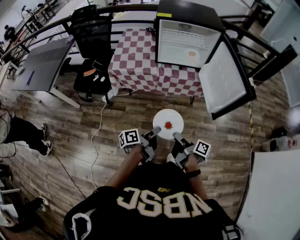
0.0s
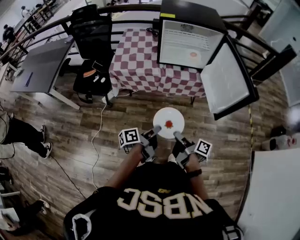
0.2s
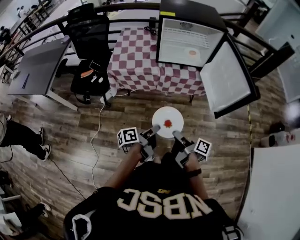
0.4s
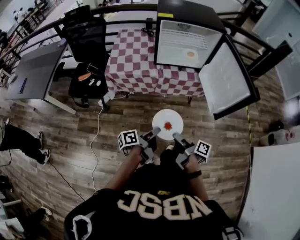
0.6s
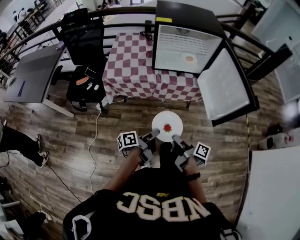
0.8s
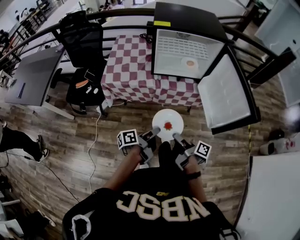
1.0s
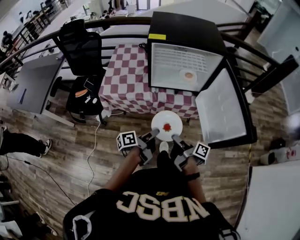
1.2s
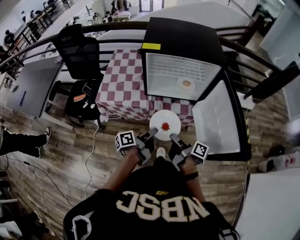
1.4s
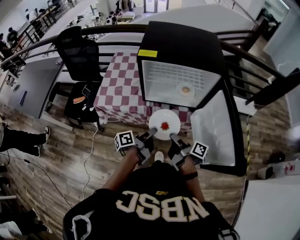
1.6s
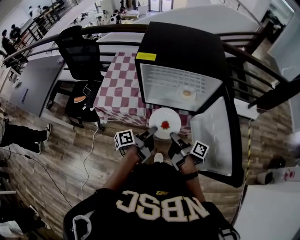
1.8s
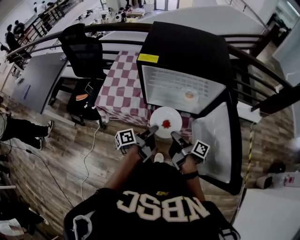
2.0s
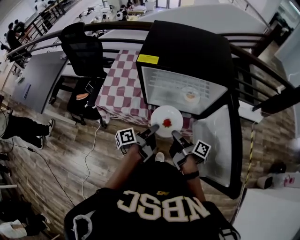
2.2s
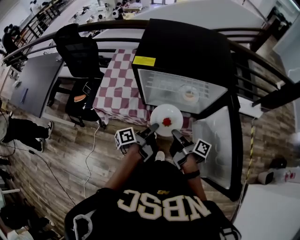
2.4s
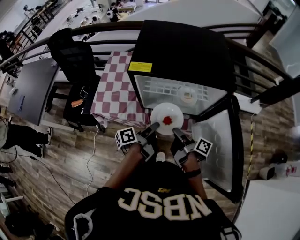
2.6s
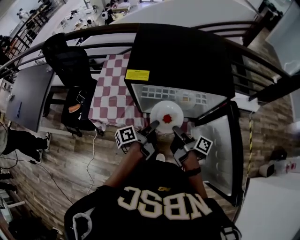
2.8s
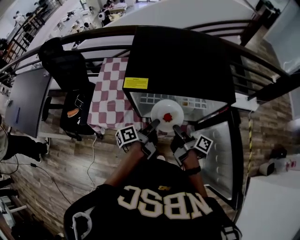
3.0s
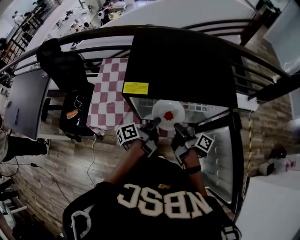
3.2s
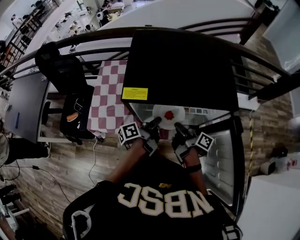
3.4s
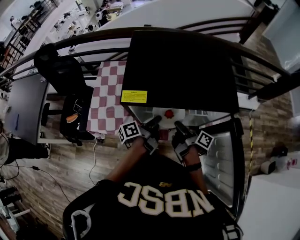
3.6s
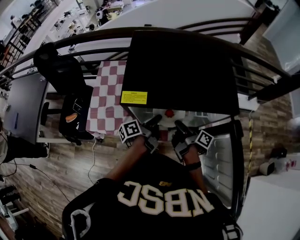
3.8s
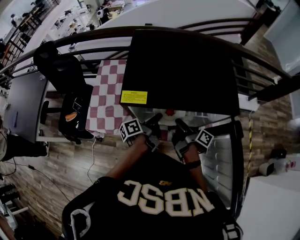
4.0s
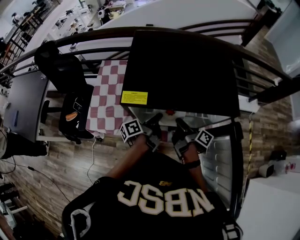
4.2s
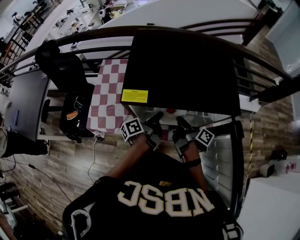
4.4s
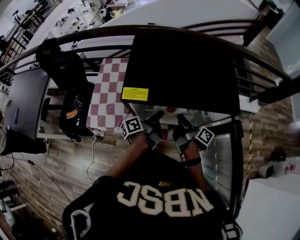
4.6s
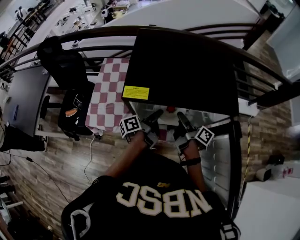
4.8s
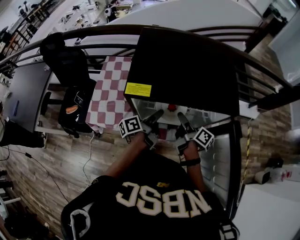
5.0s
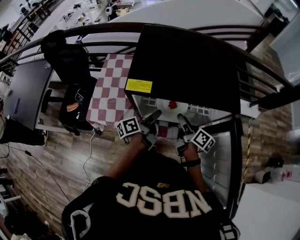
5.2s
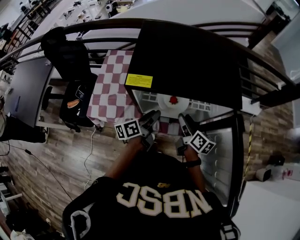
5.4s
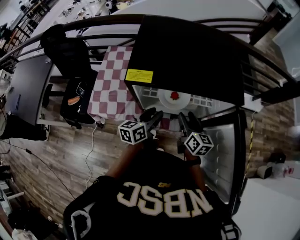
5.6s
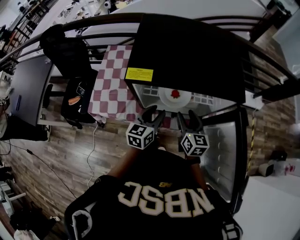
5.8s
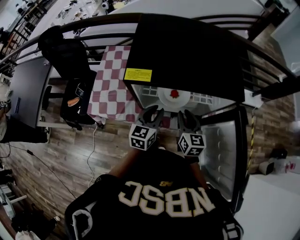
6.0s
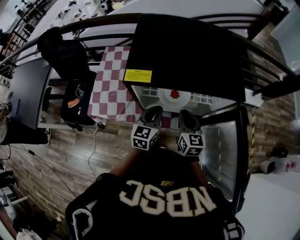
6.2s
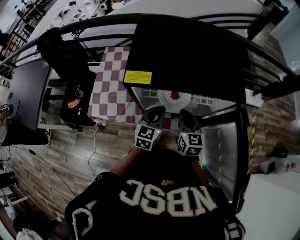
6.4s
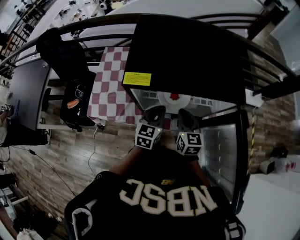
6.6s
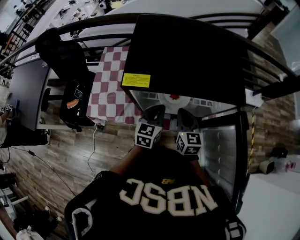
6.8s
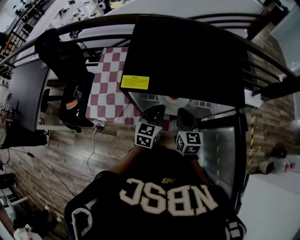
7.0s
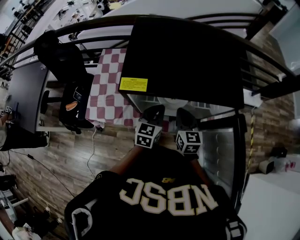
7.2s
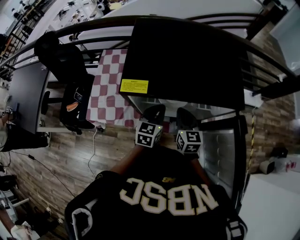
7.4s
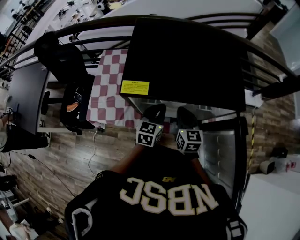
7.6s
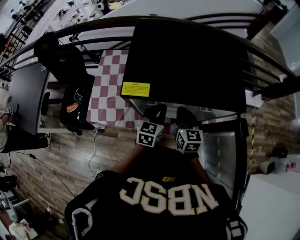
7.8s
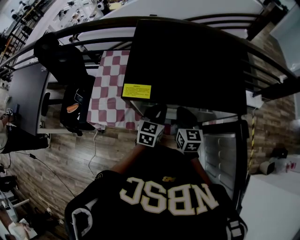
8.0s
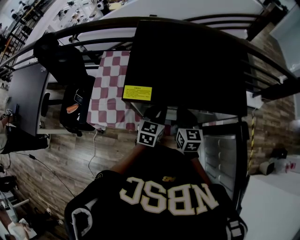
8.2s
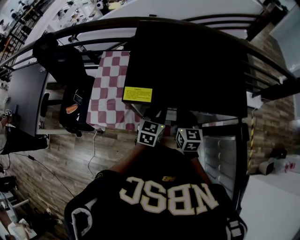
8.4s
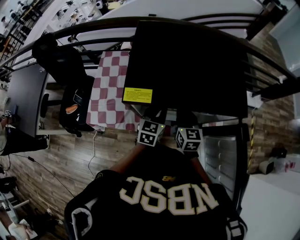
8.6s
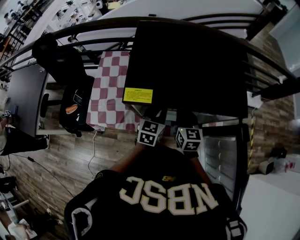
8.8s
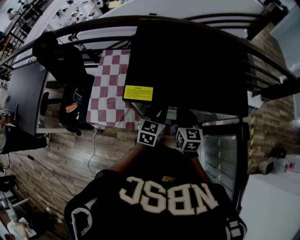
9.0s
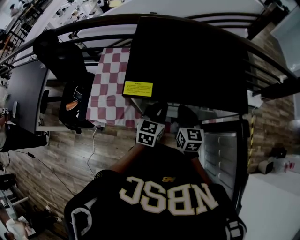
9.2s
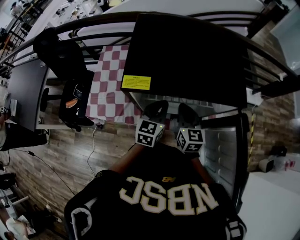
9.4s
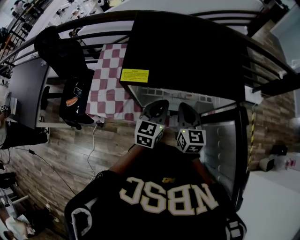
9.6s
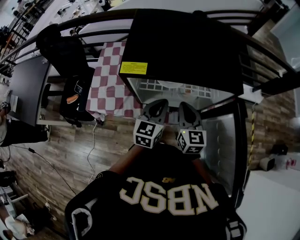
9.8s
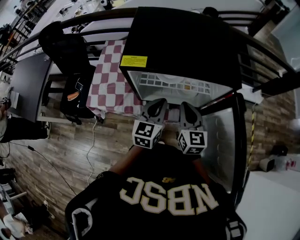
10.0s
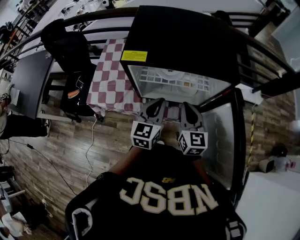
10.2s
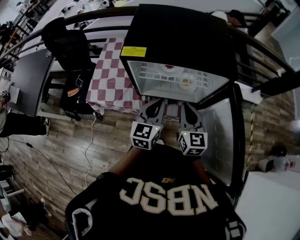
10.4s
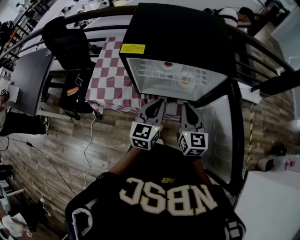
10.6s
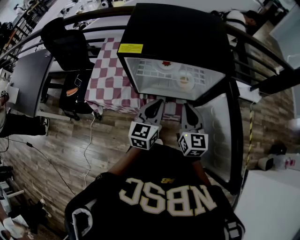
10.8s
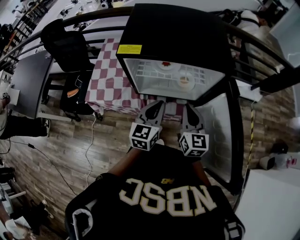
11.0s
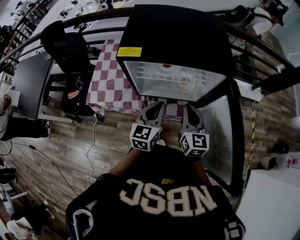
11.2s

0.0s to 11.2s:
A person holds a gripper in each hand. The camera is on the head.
0.0s to 1.6s: The grippers both shift forward by some 30 cm.
1.6s to 3.2s: The two grippers go about 20 cm forward.
3.2s to 4.8s: Both grippers move forward, roughly 5 cm. The right gripper opens up; the left gripper opens.
4.8s to 6.4s: The left gripper rotates around the line of its fingers by some 80 degrees, clockwise from behind, and closes up; the right gripper rotates around the line of its fingers by approximately 70 degrees, counterclockwise from behind, and closes its fingers.
6.4s to 8.0s: The two grippers go roughly 5 cm forward.
8.0s to 9.6s: The right gripper ends up some 5 cm from where it was, while the left gripper changes place by approximately 5 cm.
9.6s to 11.2s: The right gripper goes some 10 cm backward and to the right. Meanwhile the left gripper goes about 10 cm backward.

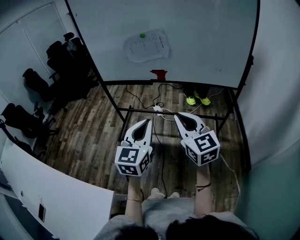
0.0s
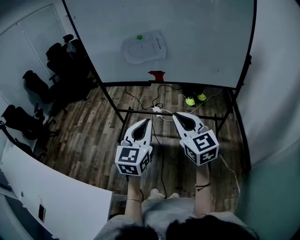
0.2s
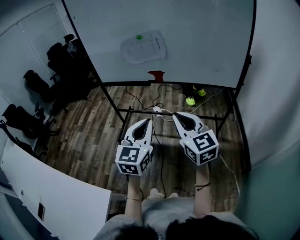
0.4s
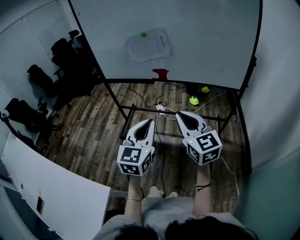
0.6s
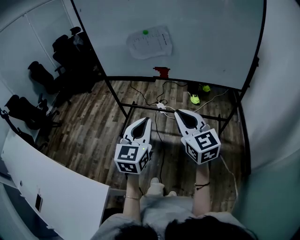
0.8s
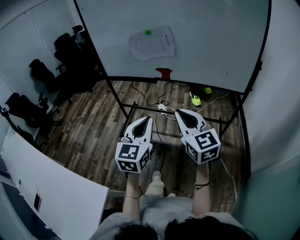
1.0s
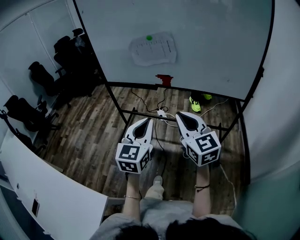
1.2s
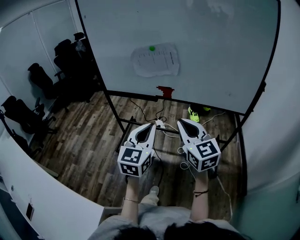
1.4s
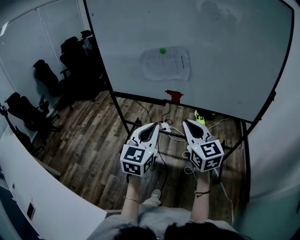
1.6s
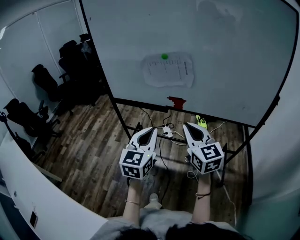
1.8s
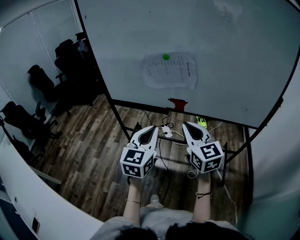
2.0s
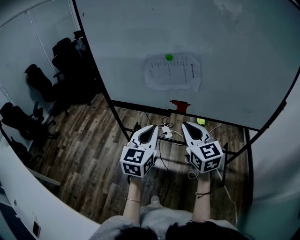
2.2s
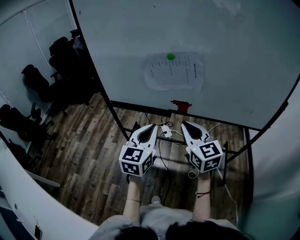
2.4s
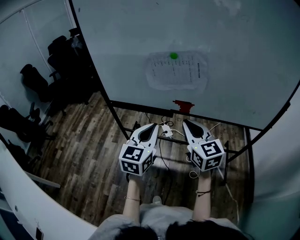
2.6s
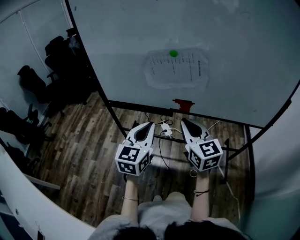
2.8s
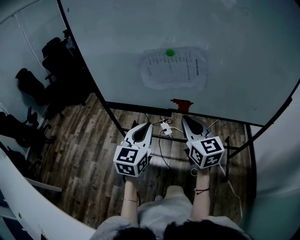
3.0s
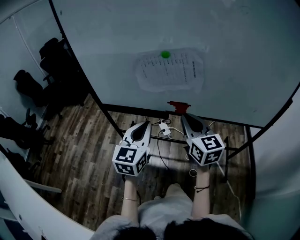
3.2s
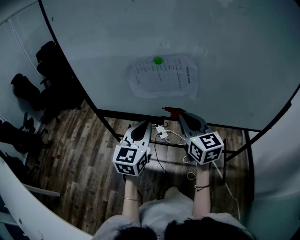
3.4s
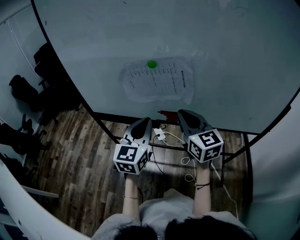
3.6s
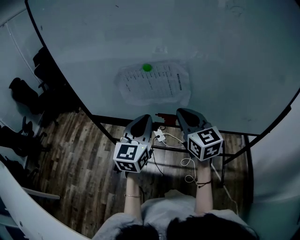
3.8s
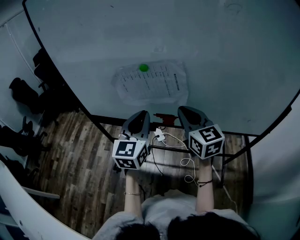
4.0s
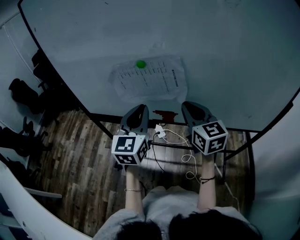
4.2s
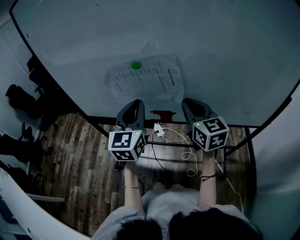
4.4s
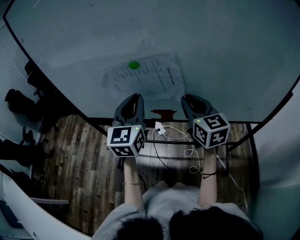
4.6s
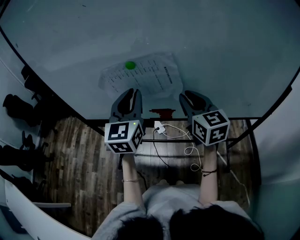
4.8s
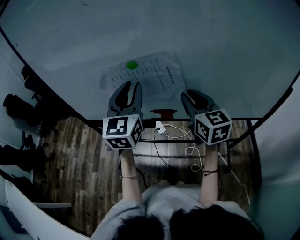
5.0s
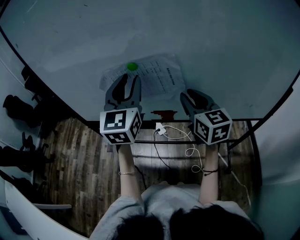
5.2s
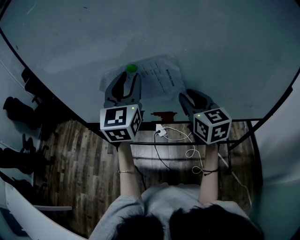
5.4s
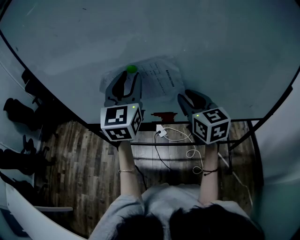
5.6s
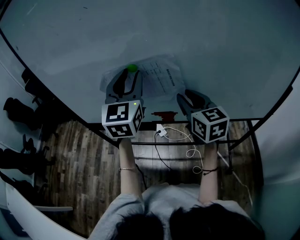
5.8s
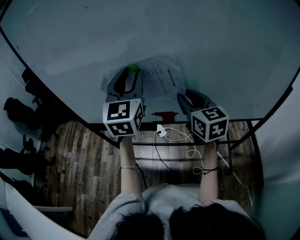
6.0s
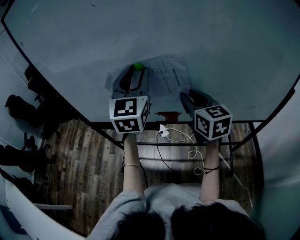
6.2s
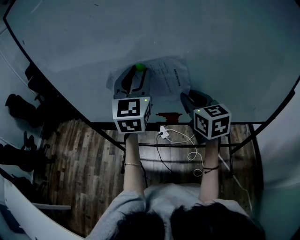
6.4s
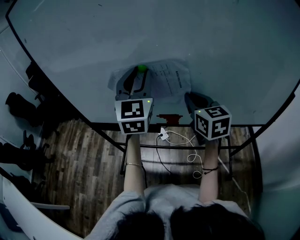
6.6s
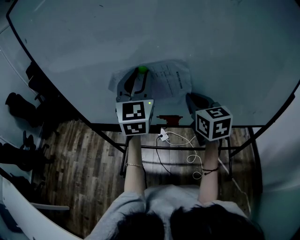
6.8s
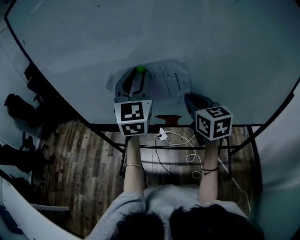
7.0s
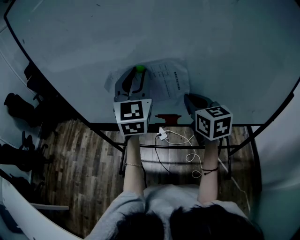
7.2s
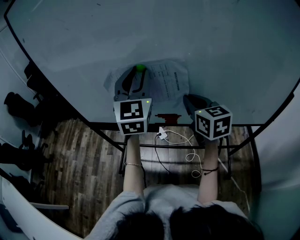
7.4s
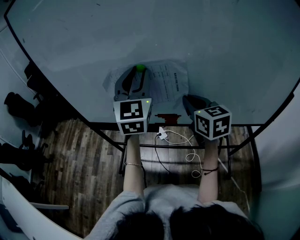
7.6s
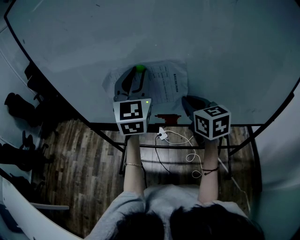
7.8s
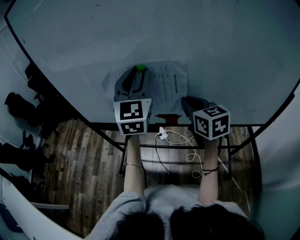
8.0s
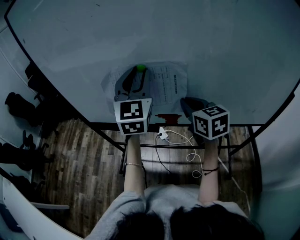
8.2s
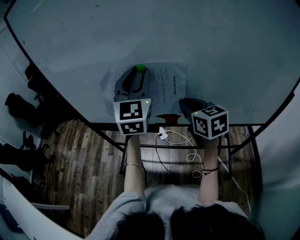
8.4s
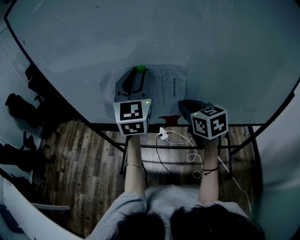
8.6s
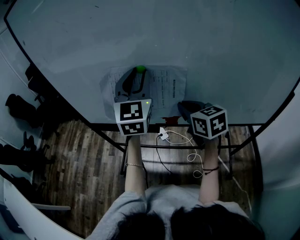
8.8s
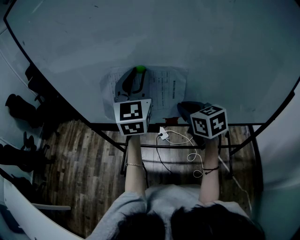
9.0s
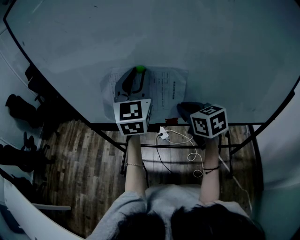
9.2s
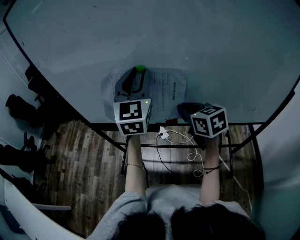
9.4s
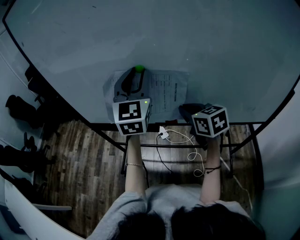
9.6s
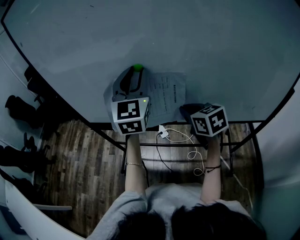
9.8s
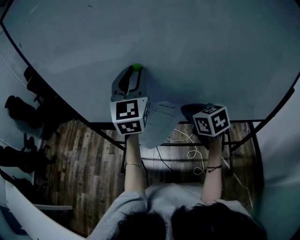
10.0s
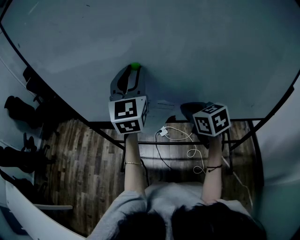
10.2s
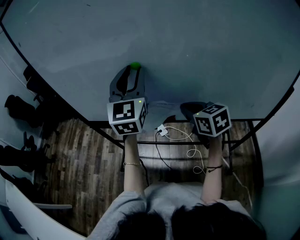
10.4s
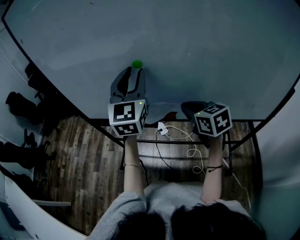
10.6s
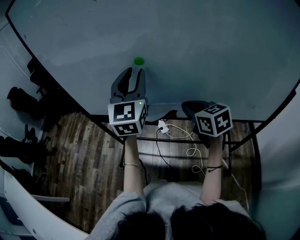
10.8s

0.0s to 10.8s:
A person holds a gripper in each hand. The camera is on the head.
0.0s to 1.6s: Both grippers travel together forward, some 15 cm.
1.6s to 3.0s: The left gripper travels forward and to the left by approximately 20 cm. Meanwhile the right gripper moves forward, about 20 cm.
3.0s to 4.6s: The left gripper heads forward, to the right and upward, covering roughly 20 cm; the right gripper travels forward and to the right by about 20 cm.
4.6s to 6.2s: The left gripper shifts some 10 cm upward and forward, and opens.
6.2s to 7.8s: The right gripper closes.
7.8s to 9.2s: The grippers stay close to where they were, moving slightly.
9.2s to 10.8s: The grippers move only a little.

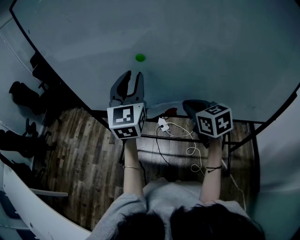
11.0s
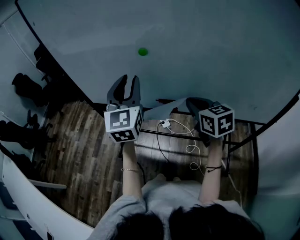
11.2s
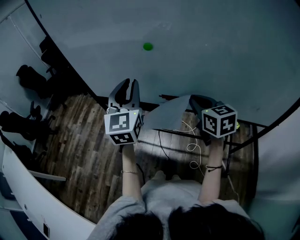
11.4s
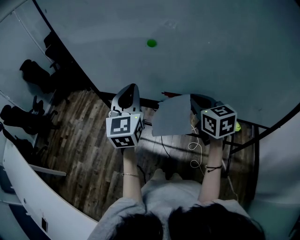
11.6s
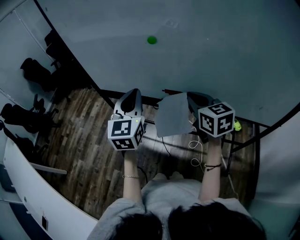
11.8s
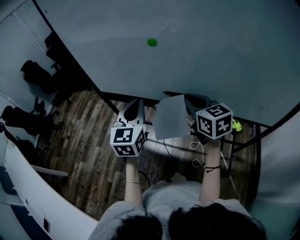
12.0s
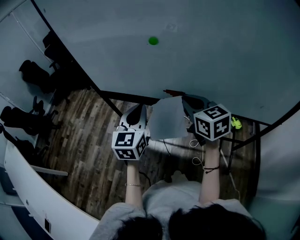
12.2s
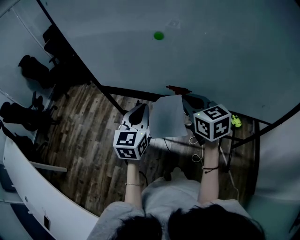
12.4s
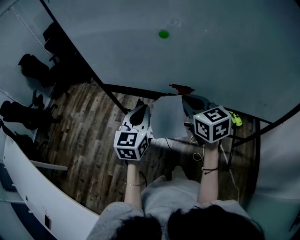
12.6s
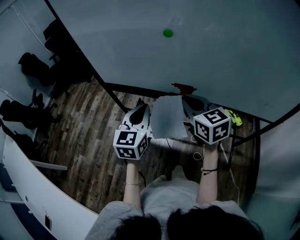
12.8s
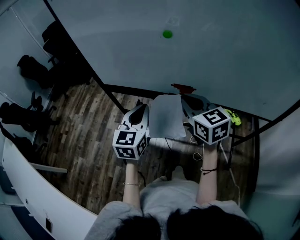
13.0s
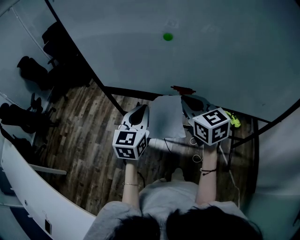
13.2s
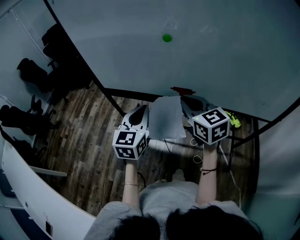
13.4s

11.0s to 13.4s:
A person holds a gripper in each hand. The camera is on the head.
11.0s to 12.2s: The right gripper travels to the left by approximately 5 cm. The left gripper heads downward, backward and to the left, covering approximately 15 cm, and closes.
12.2s to 13.4s: The right gripper is displaced to the left by about 5 cm.
